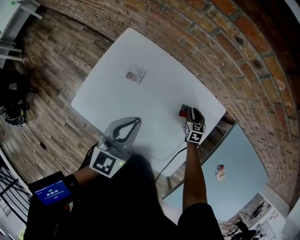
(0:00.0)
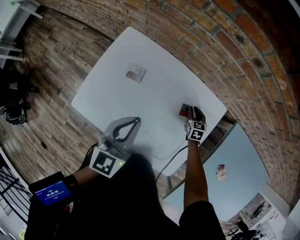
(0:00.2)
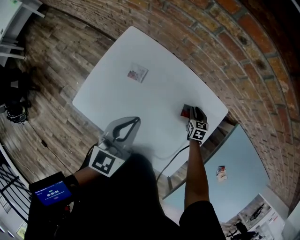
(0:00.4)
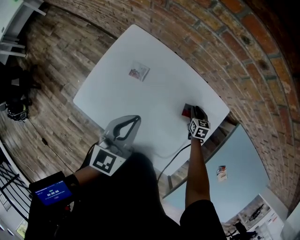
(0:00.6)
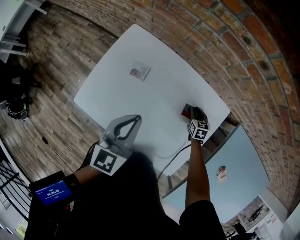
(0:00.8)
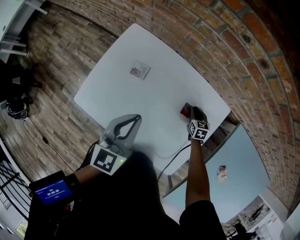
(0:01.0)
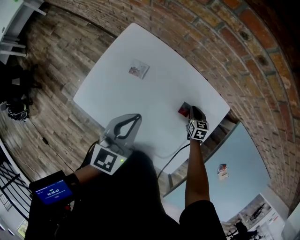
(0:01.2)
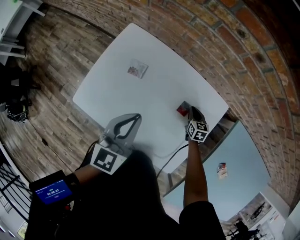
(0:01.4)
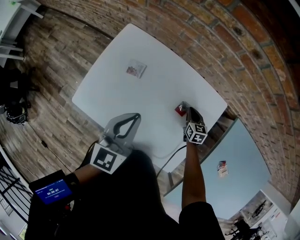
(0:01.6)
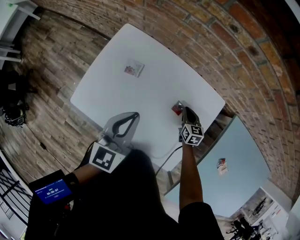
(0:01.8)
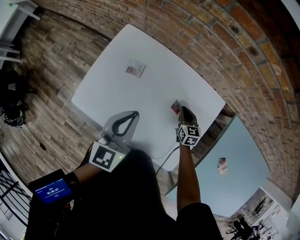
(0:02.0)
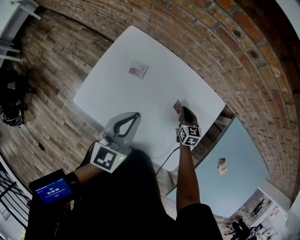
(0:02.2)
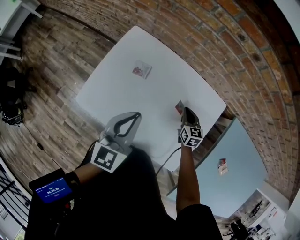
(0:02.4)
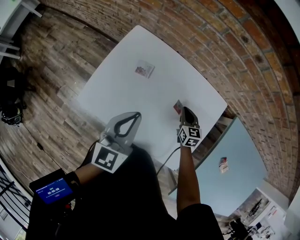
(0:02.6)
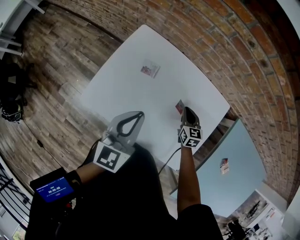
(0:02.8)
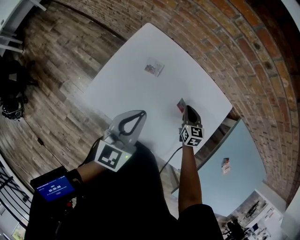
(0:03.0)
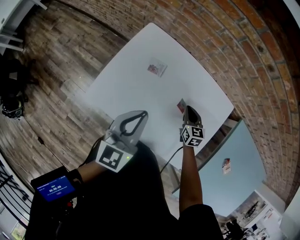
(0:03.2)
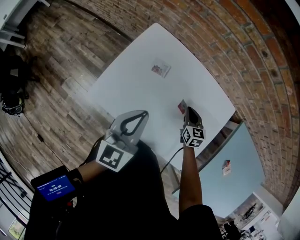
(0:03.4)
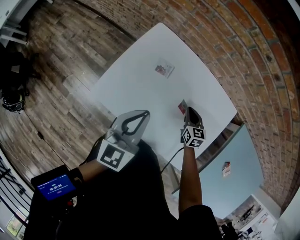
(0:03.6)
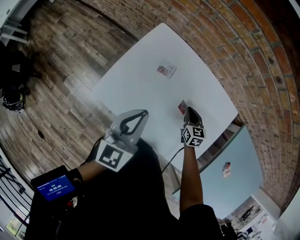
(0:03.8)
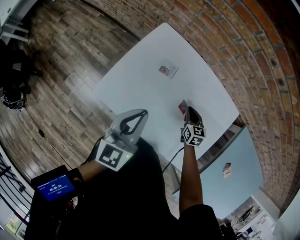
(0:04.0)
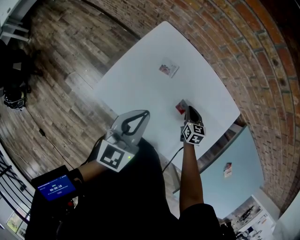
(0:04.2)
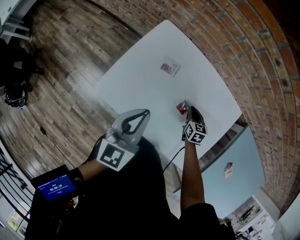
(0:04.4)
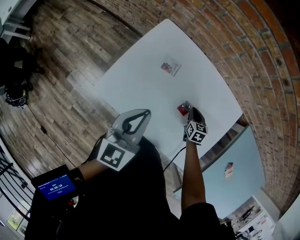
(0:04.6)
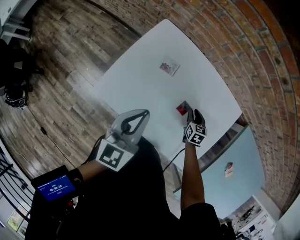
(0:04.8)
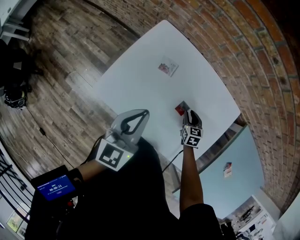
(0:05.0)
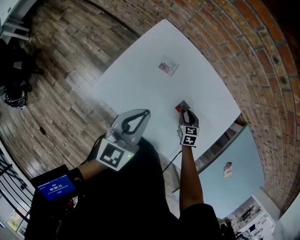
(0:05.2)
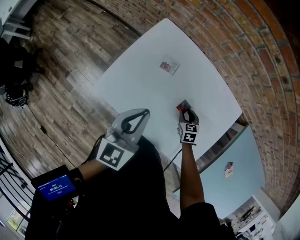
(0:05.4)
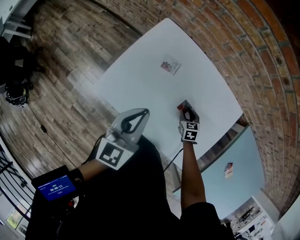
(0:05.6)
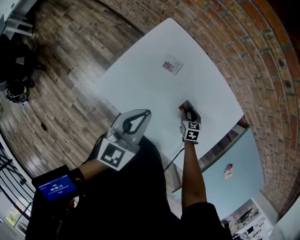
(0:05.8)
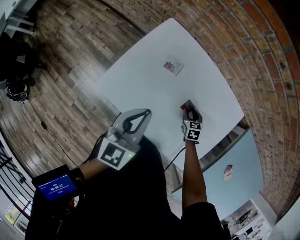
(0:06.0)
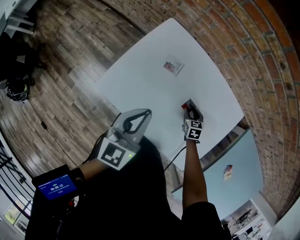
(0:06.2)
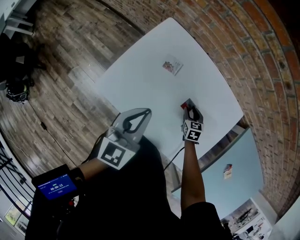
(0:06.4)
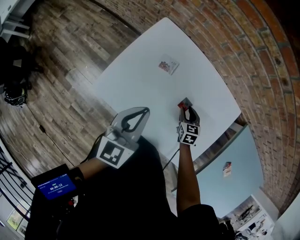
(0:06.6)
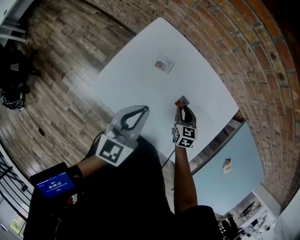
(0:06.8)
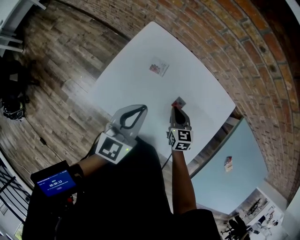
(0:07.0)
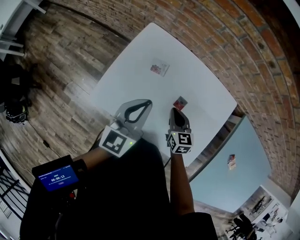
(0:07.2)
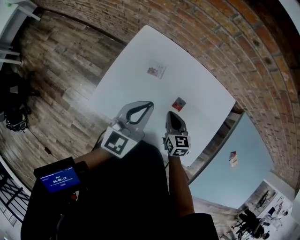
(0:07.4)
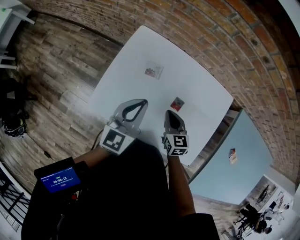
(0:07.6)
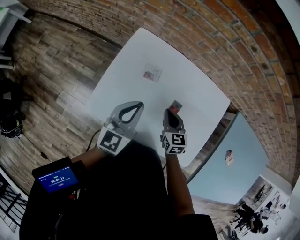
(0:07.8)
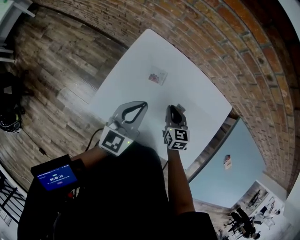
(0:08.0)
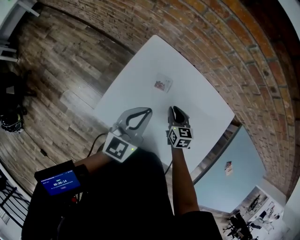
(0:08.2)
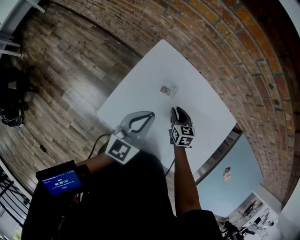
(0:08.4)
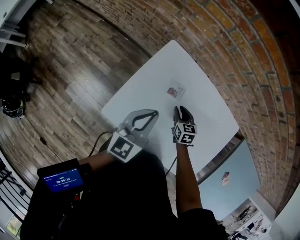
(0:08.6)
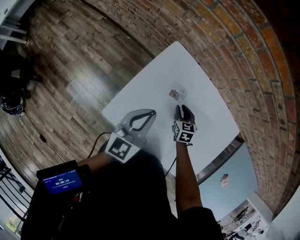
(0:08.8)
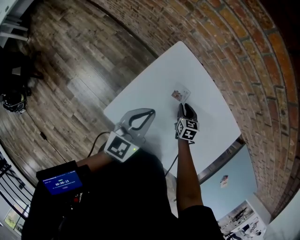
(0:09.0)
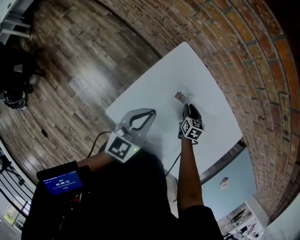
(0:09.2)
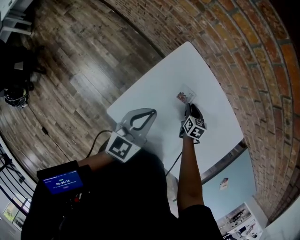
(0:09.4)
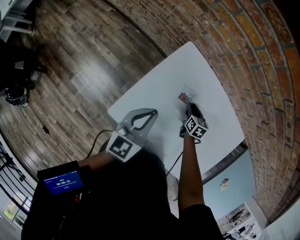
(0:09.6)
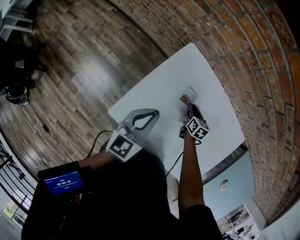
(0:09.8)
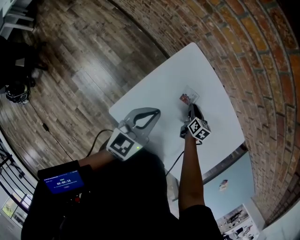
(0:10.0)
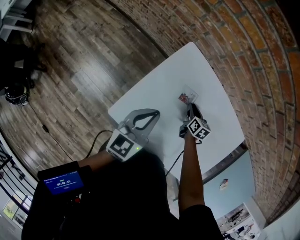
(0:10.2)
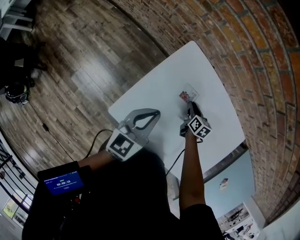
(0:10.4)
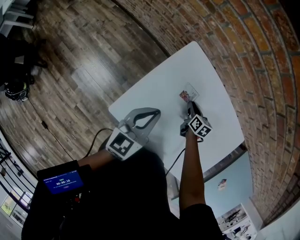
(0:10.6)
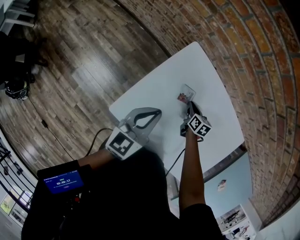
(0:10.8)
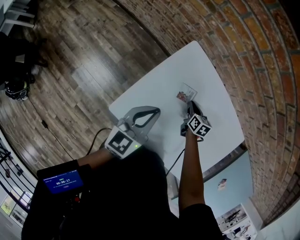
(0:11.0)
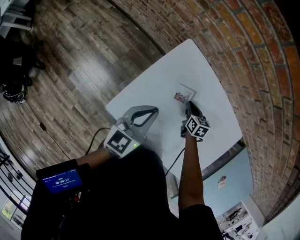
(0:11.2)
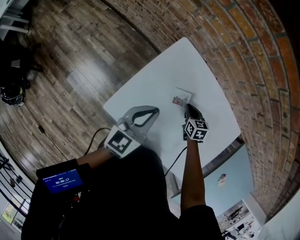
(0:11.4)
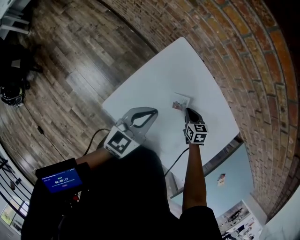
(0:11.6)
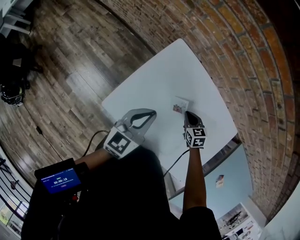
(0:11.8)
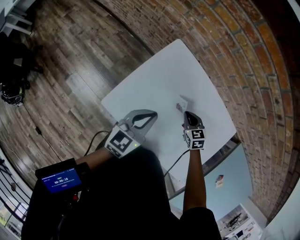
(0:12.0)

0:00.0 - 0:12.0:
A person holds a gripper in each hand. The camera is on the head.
0:00.0 - 0:01.6: There are only small adjustments of the grippers.
0:01.6 - 0:03.0: The right gripper moves to the left and upward, some 15 cm, while the left gripper heads to the left, covering roughly 10 cm.
0:03.0 - 0:04.4: The right gripper is displaced downward by some 5 cm.
0:04.4 - 0:06.0: The right gripper changes place by roughly 5 cm, and opens up.
0:06.0 - 0:07.6: The right gripper is displaced upward and to the left by some 20 cm, rotates roughly 20 degrees, and closes. Meanwhile the left gripper ends up approximately 5 cm from where it was.
0:07.6 - 0:09.0: The right gripper travels forward and downward by some 20 cm, and opens its fingers, while the left gripper moves to the left, approximately 10 cm.
0:09.0 - 0:10.4: The right gripper swivels about 20 degrees.
0:10.4 - 0:12.0: The left gripper goes approximately 10 cm backward and to the right, while the right gripper goes approximately 10 cm backward and upward, and rotates around the line of its fingers by roughly 40 degrees, counterclockwise from behind.

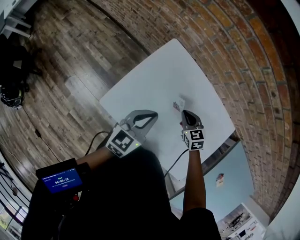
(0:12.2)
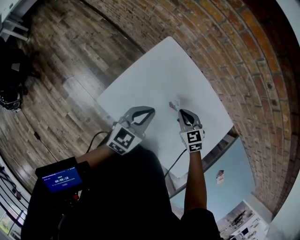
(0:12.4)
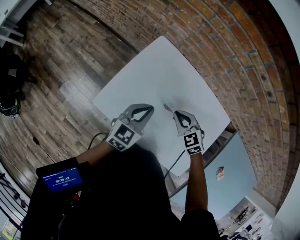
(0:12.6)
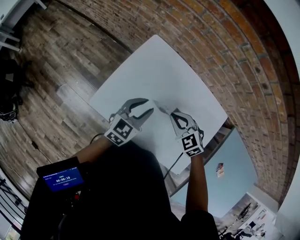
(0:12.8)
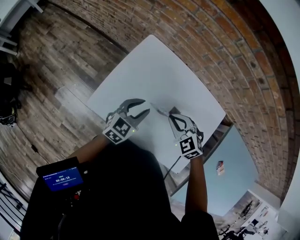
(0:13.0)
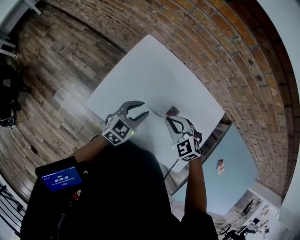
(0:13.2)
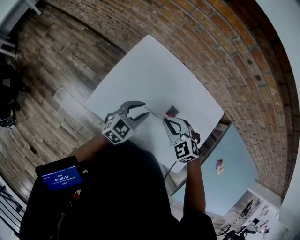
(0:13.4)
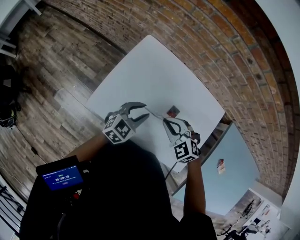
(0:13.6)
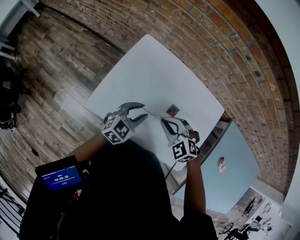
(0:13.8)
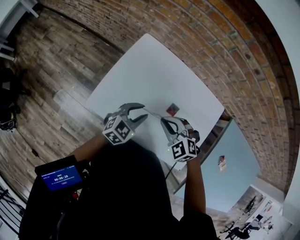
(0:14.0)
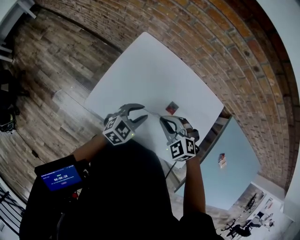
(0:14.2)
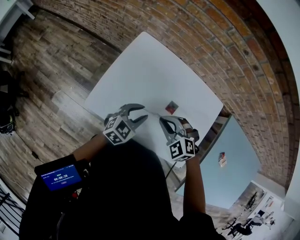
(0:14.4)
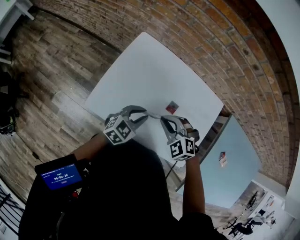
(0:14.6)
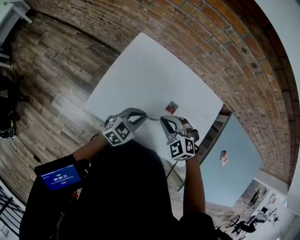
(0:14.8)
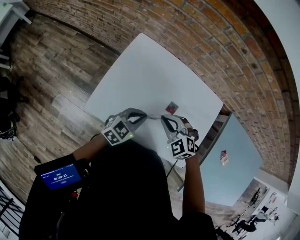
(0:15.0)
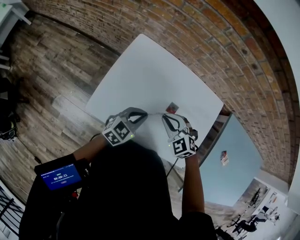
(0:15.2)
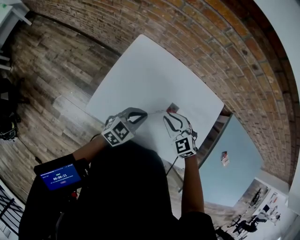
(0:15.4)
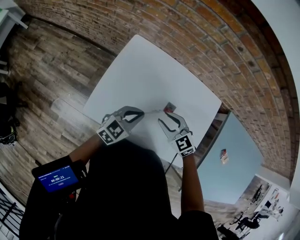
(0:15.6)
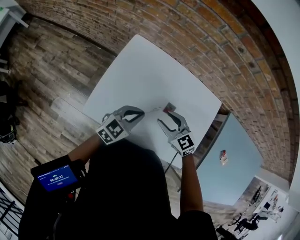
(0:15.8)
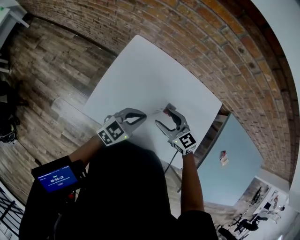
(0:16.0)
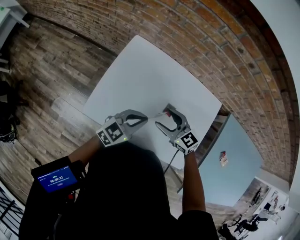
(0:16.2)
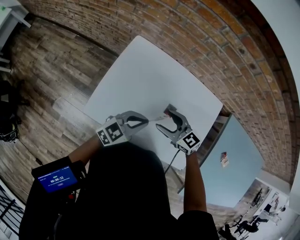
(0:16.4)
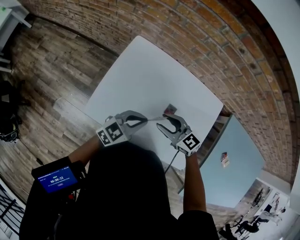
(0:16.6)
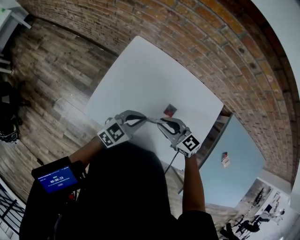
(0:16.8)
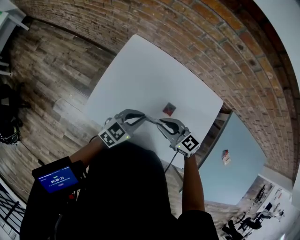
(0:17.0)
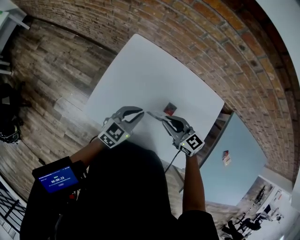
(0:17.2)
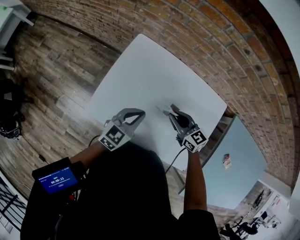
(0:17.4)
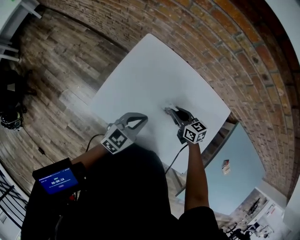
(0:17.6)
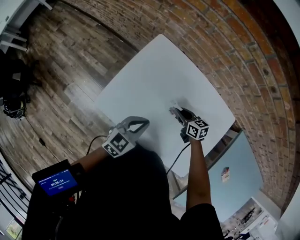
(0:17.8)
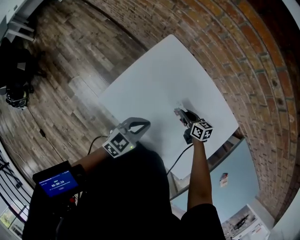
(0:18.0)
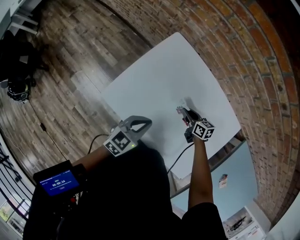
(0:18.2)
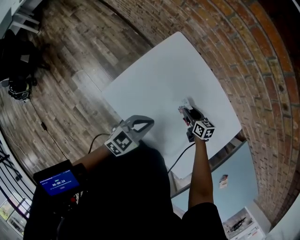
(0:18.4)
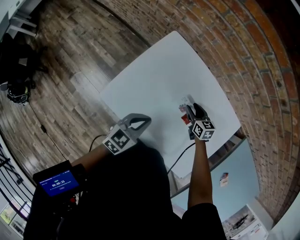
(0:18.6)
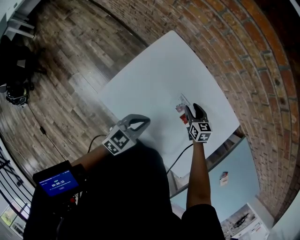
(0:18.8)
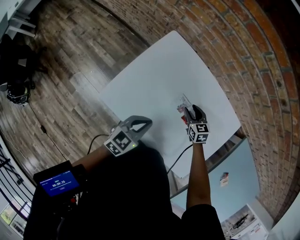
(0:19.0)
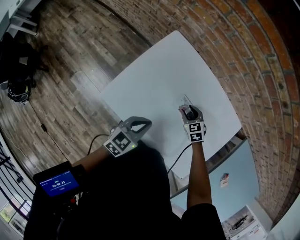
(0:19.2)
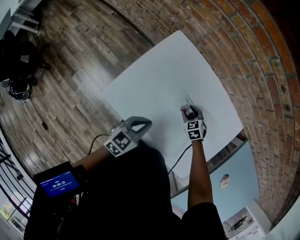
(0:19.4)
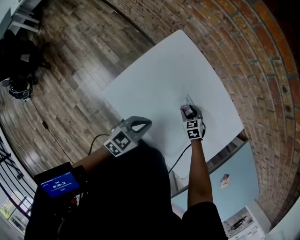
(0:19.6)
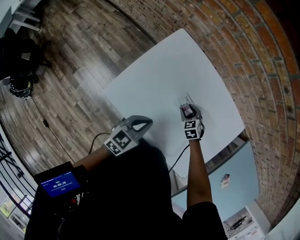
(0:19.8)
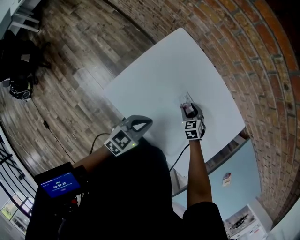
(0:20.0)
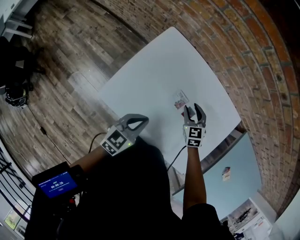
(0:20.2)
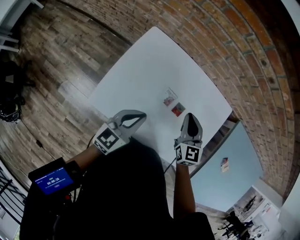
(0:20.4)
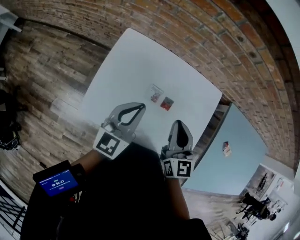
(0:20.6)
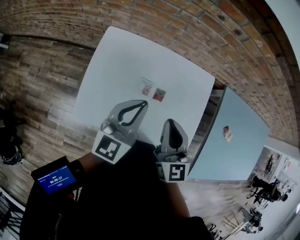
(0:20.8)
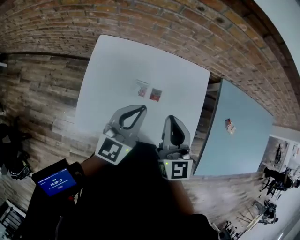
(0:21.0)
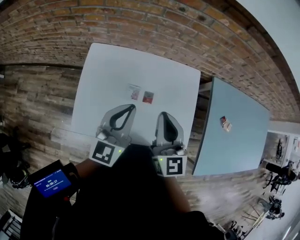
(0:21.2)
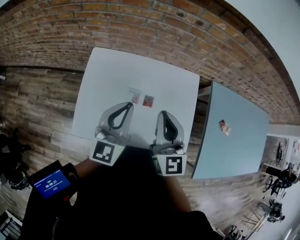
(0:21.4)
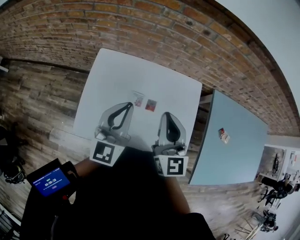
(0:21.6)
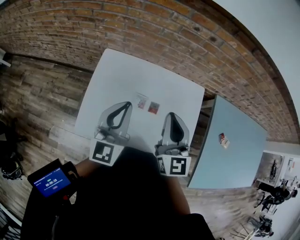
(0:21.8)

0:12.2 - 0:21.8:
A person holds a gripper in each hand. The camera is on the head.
0:12.2 - 0:13.8: The left gripper is displaced downward by approximately 5 cm, changes its angle by some 30 degrees, and opens, while the right gripper heads backward, upward and to the left, covering approximately 15 cm, and rotates some 30 degrees.
0:13.8 - 0:15.4: The left gripper closes.
0:15.4 - 0:17.0: The right gripper turns by approximately 30 degrees, and opens, then closes again.
0:17.0 - 0:18.6: The right gripper shifts roughly 20 cm downward, forward and to the right, turns by some 30 degrees, and opens up. Meanwhile the left gripper shifts by some 5 cm, and changes its angle by about 20 degrees.
0:18.6 - 0:20.2: The right gripper changes place by about 5 cm, and rotates roughly 30 degrees.
0:20.2 - 0:21.8: The two grippers go approximately 25 cm upward. The left gripper rotates about 30 degrees, while the right gripper tilts its fingers approximately 40 degrees upward, and closes.

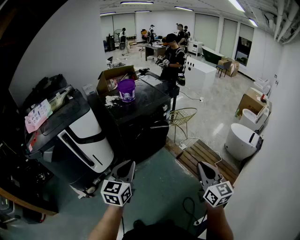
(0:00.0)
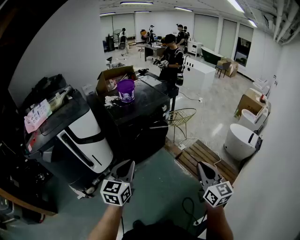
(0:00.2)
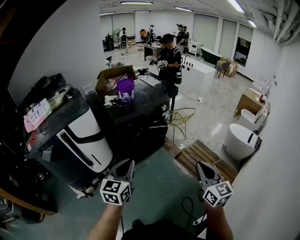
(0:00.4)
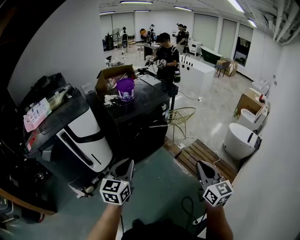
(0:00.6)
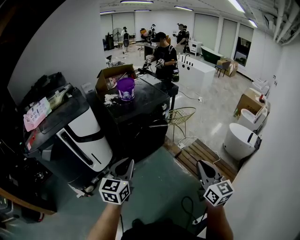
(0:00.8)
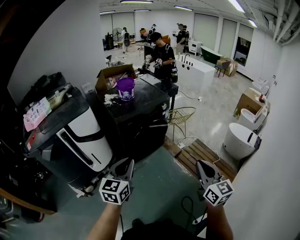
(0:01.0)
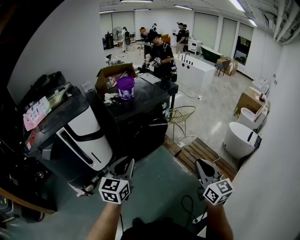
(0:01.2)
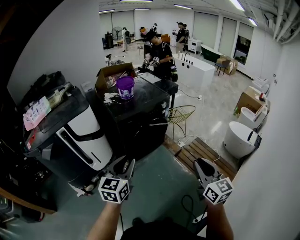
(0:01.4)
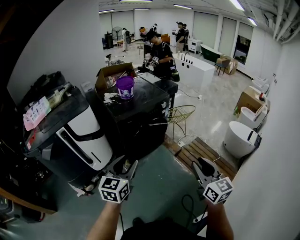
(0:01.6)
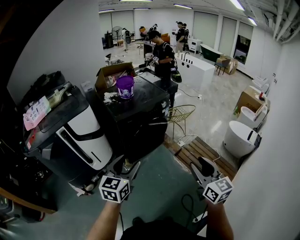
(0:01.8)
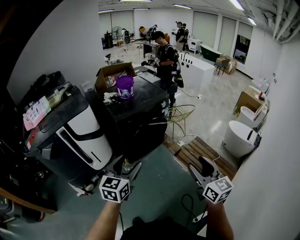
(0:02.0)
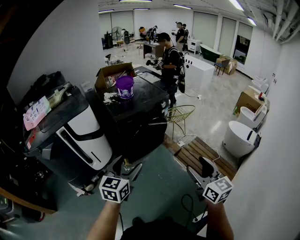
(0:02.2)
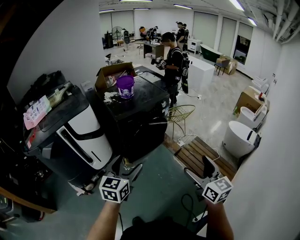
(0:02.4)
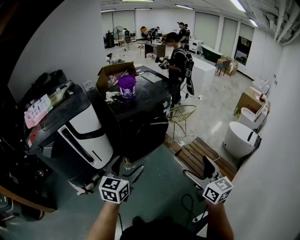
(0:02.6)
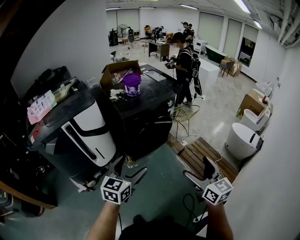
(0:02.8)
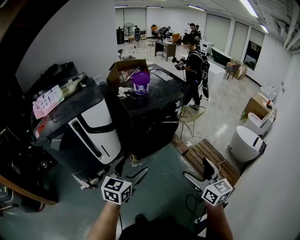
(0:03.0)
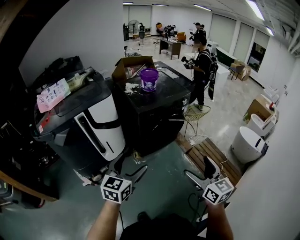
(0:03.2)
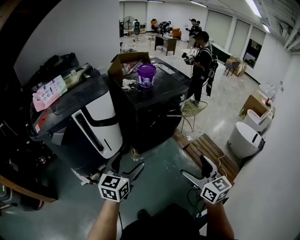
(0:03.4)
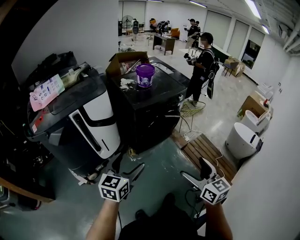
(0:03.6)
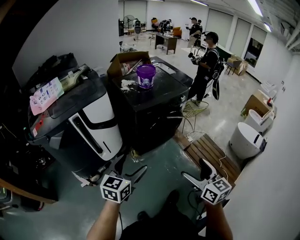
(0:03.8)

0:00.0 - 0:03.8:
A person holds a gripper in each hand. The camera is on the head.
0:00.0 - 0:01.2: The grippers move only a little.
0:01.2 - 0:02.6: The left gripper opens up, while the right gripper opens.
0:02.6 - 0:03.8: Both grippers move to the left, approximately 10 cm.
